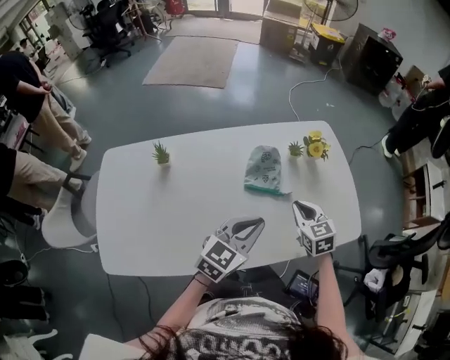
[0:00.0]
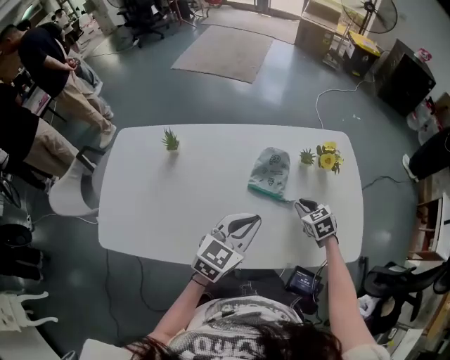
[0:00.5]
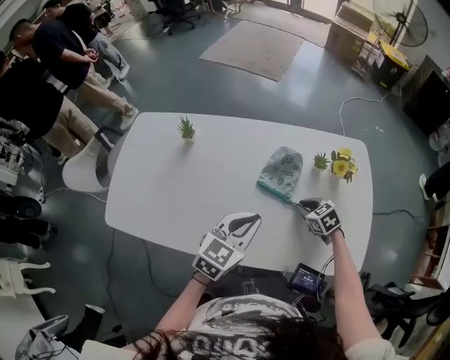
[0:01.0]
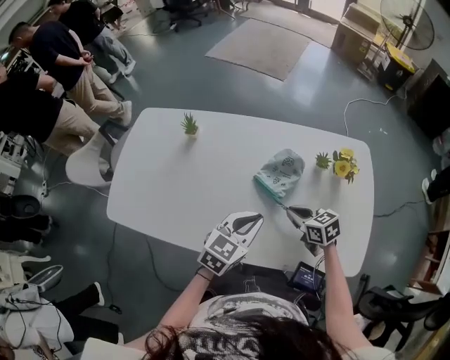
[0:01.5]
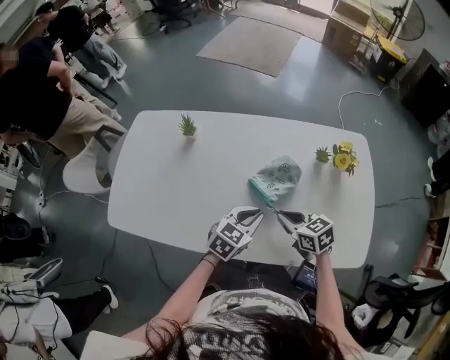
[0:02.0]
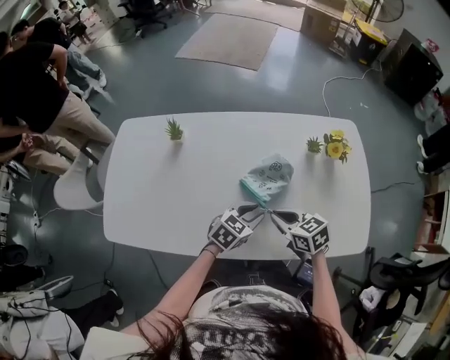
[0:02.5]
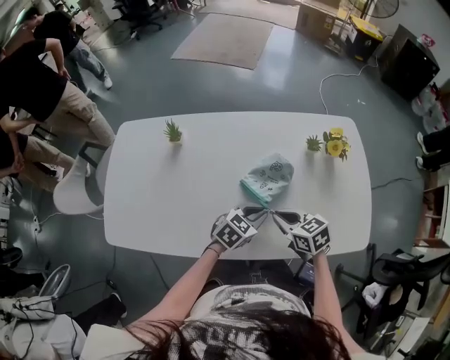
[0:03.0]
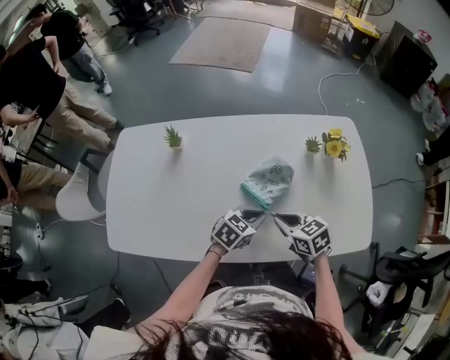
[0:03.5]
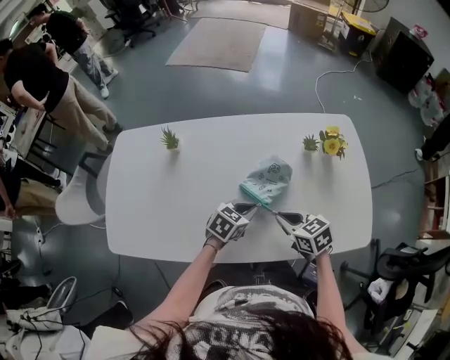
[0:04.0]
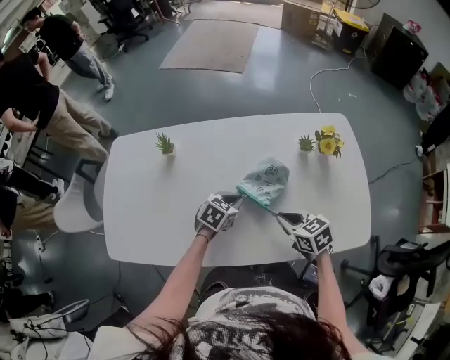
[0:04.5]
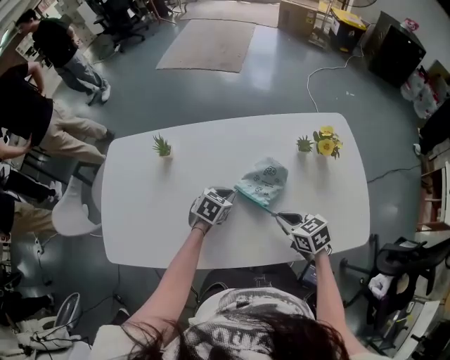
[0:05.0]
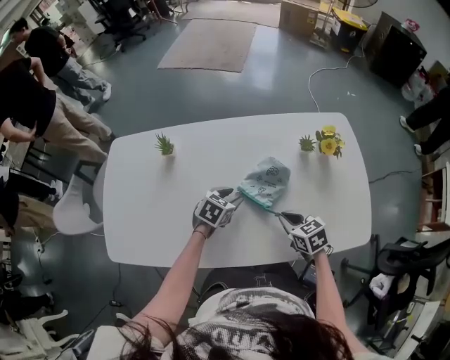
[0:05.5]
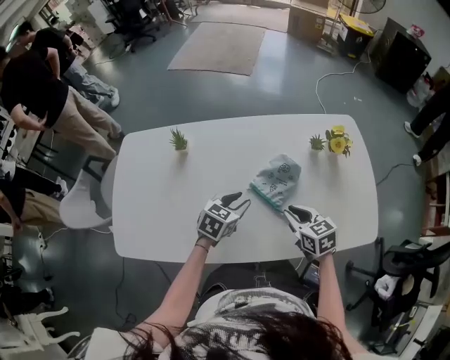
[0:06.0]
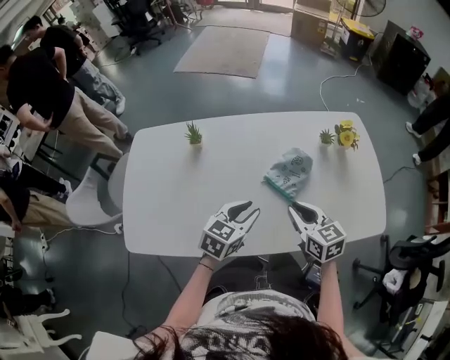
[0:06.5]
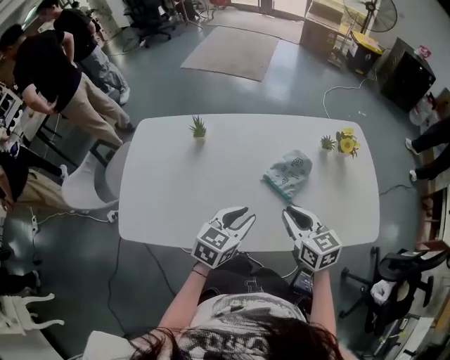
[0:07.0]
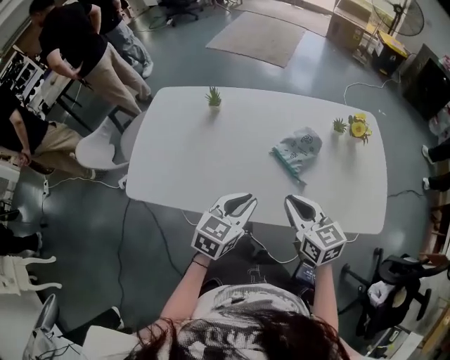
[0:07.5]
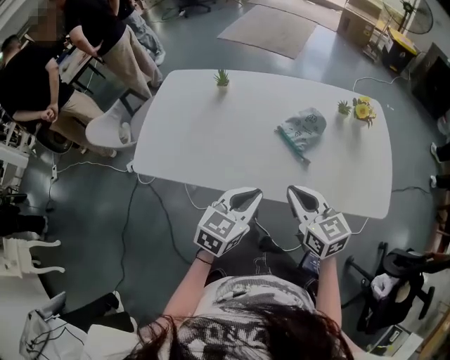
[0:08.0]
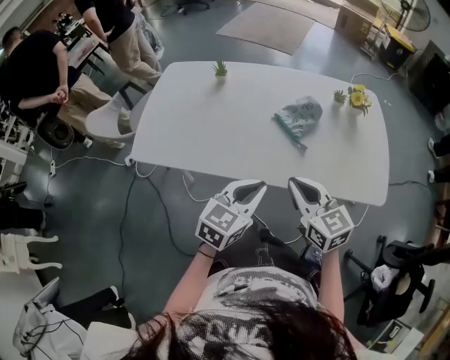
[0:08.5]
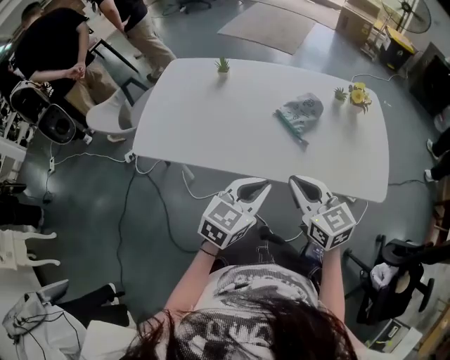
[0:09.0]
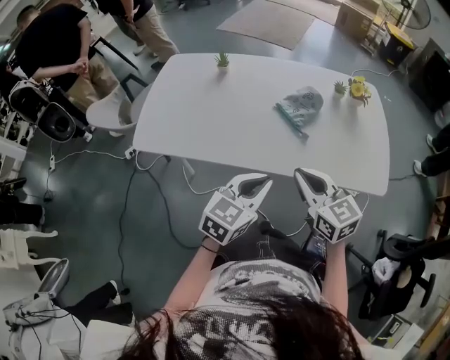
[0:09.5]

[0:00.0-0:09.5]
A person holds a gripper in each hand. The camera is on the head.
0:00.0 to 0:02.0: The right gripper reaches about 10 cm downward, then returns, and swivels some 40 degrees; the left gripper moves downward, about 10 cm, and turns by some 20 degrees.
0:02.0 to 0:04.0: The left gripper travels downward by roughly 5 cm.
0:04.0 to 0:05.5: The left gripper moves to the left and forward, about 10 cm, and opens up.
0:05.5 to 0:07.5: The left gripper heads backward and upward, covering about 25 cm, turns by roughly 30 degrees, and closes up; the right gripper shifts approximately 20 cm upward, backward and to the left, and turns by approximately 30 degrees.
0:07.5 to 0:09.5: The two grippers go approximately 10 cm backward.

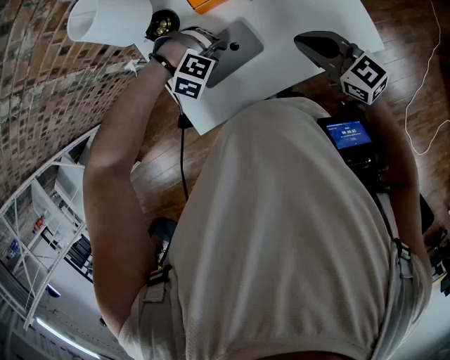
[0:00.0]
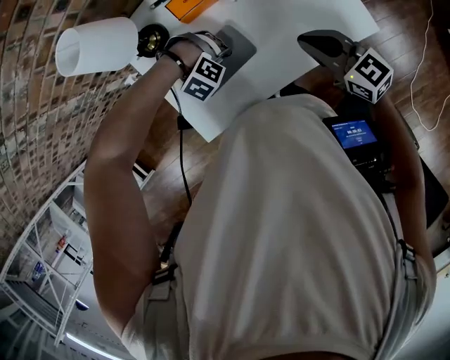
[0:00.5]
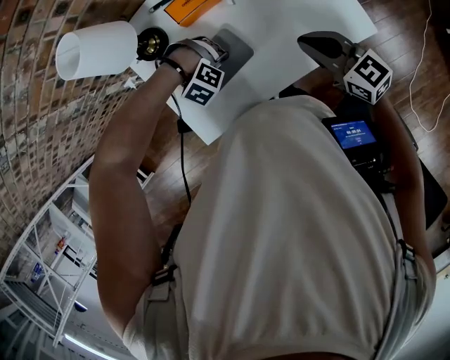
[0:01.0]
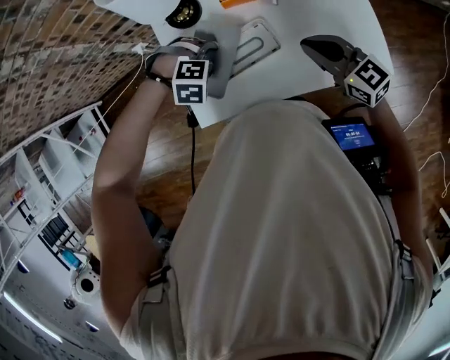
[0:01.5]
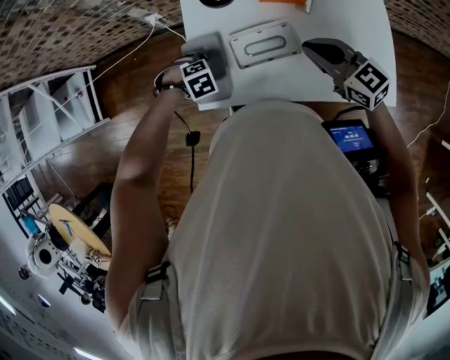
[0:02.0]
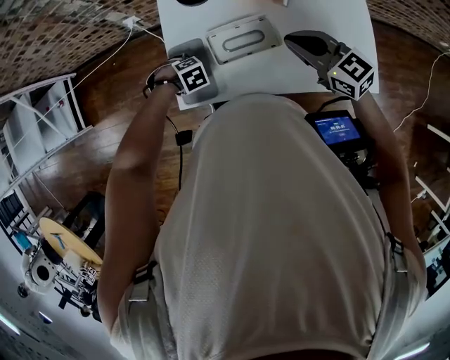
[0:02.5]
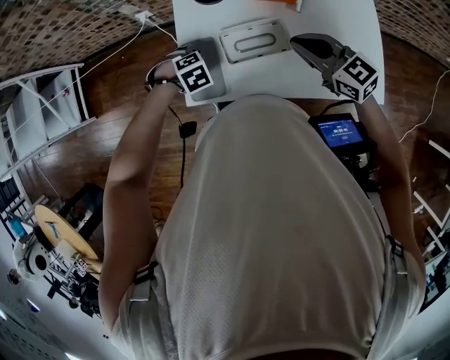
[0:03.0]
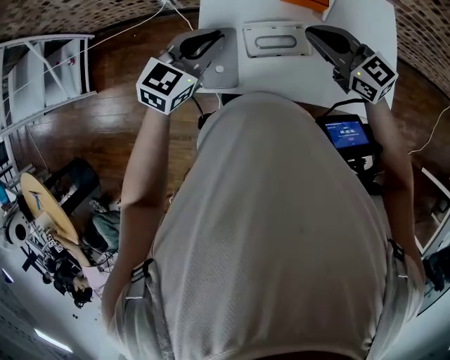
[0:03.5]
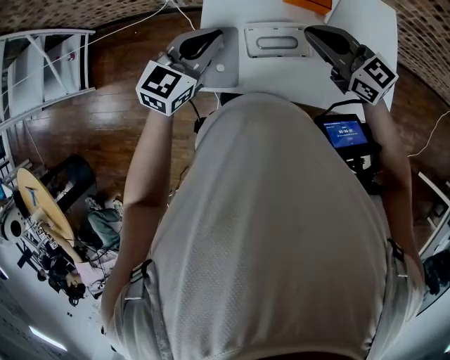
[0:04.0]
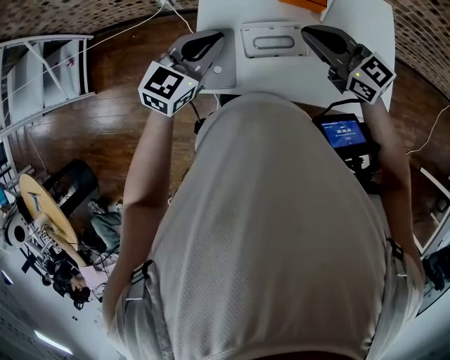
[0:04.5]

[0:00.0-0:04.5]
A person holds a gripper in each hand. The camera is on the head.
0:00.0 to 0:02.0: The right gripper shifts by some 10 cm, and changes its angle by roughly 20 degrees; the left gripper swings up and down, approximately 10 cm each way, with 2 reversals, twists roughly 70 degrees counterclockwise, seen from behind, and opens its fingers.
0:02.0 to 0:04.5: The left gripper shifts some 25 cm upward, angles its fingers upward, by some 70 degrees, and closes its fingers.

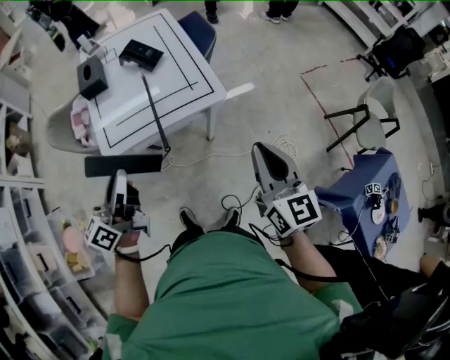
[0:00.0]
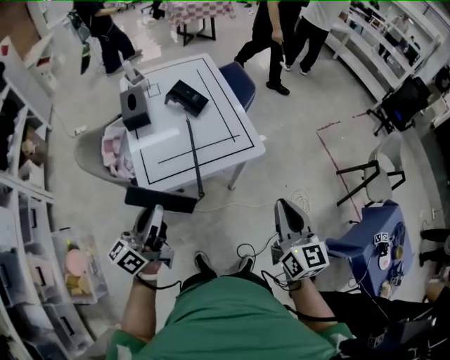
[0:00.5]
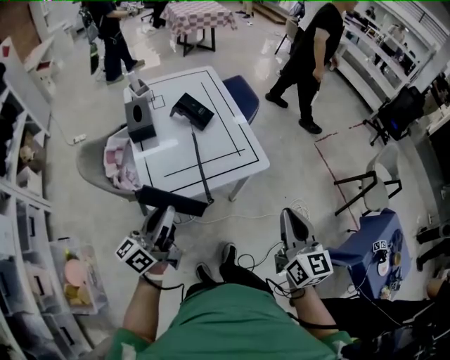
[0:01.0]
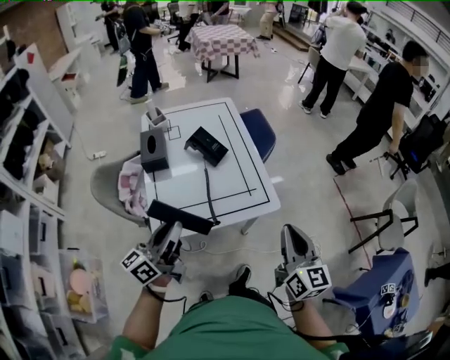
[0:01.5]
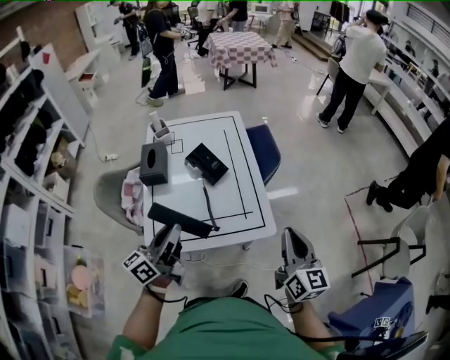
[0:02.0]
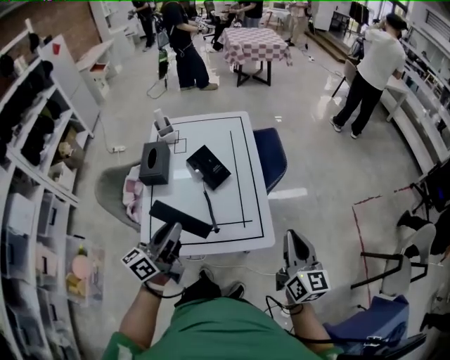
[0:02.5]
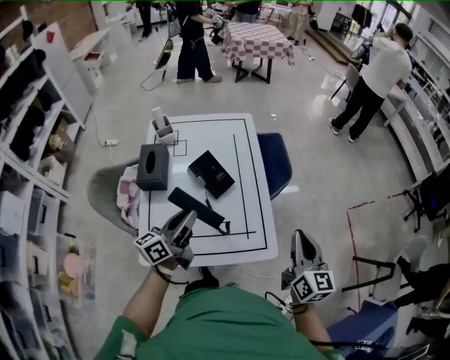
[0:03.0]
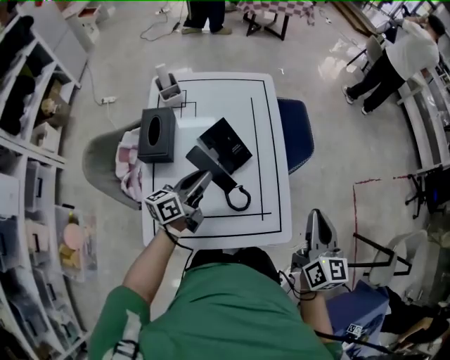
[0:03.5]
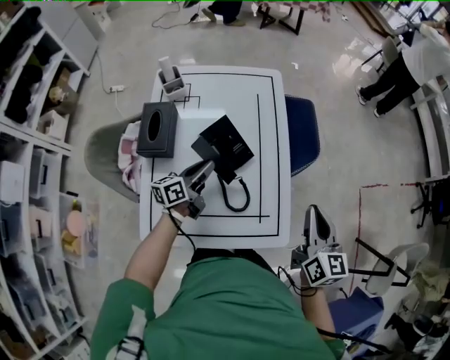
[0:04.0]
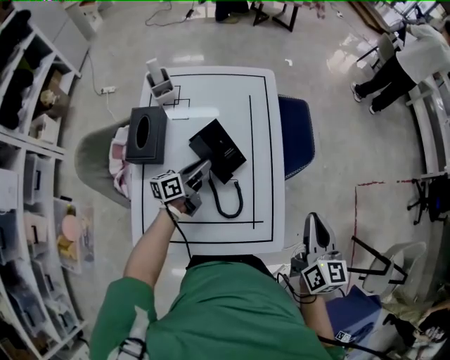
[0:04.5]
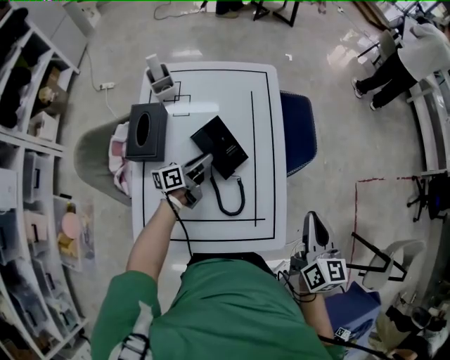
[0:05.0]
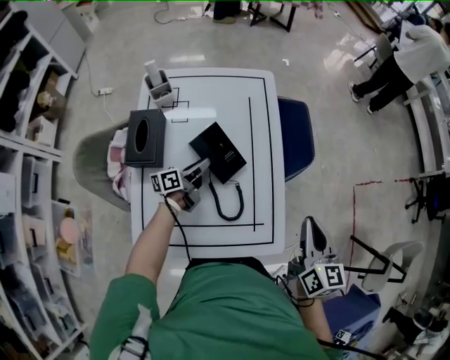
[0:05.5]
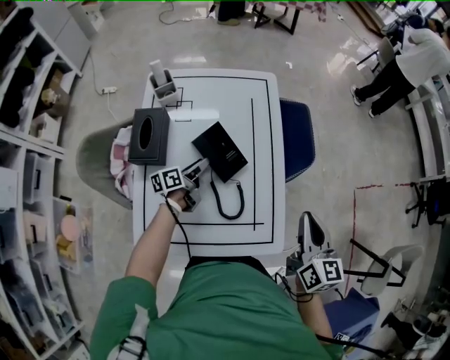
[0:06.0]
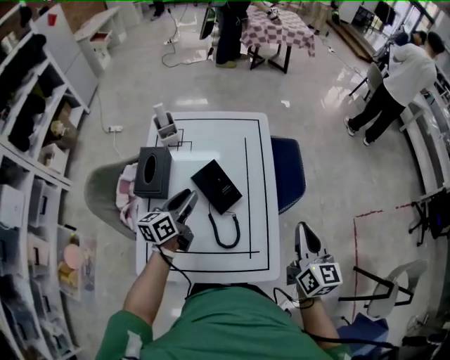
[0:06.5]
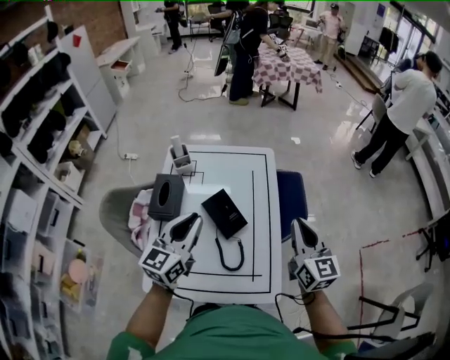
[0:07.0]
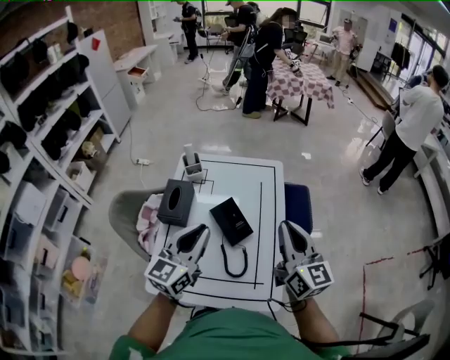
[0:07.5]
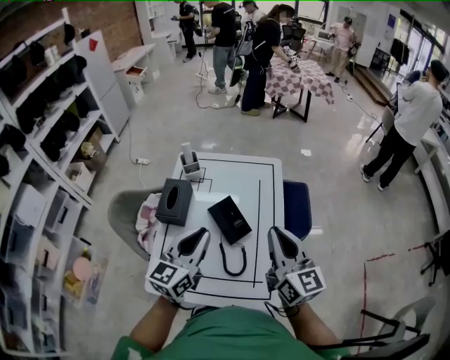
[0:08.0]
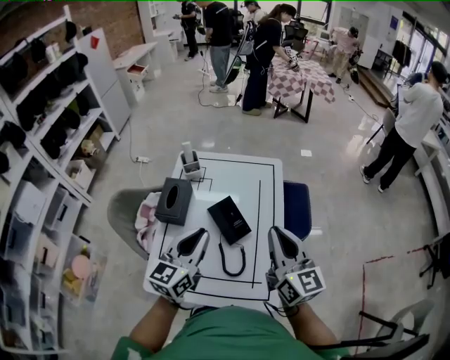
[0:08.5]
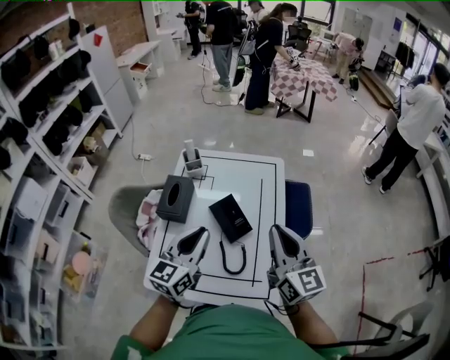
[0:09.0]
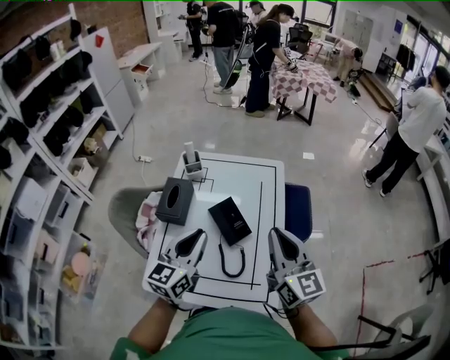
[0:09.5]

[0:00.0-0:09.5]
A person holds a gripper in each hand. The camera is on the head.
0:00.0 to 0:02.0: The grippers both shift forward by about 20 cm.
0:02.0 to 0:04.0: The right gripper travels forward by about 25 cm. Meanwhile the left gripper shifts approximately 35 cm forward and downward, and swivels roughly 20 degrees.
0:04.0 to 0:05.5: The left gripper moves downward and forward, roughly 10 cm.
0:05.5 to 0:07.5: The right gripper travels upward, to the left and forward by some 20 cm, and changes its angle by some 30 degrees; the left gripper is displaced upward by some 35 cm, and rotates around the line of its fingers by approximately 50 degrees, clockwise from behind.
0:07.5 to 0:09.5: There are only small adjustments of the grippers.

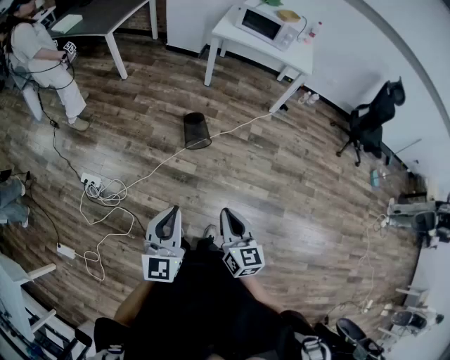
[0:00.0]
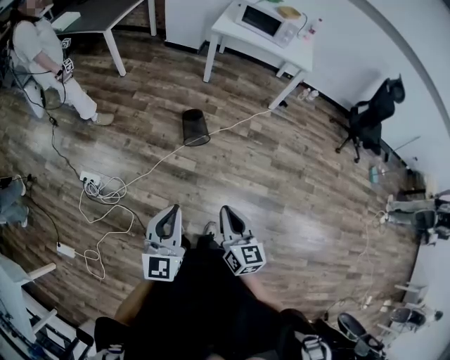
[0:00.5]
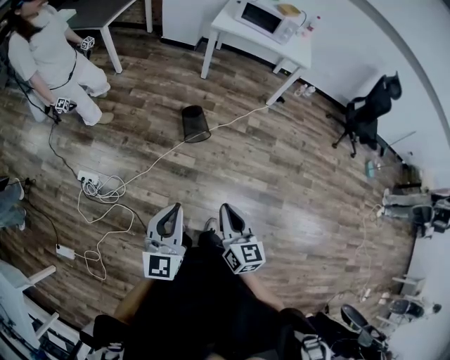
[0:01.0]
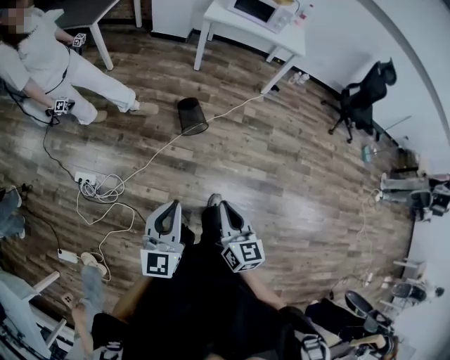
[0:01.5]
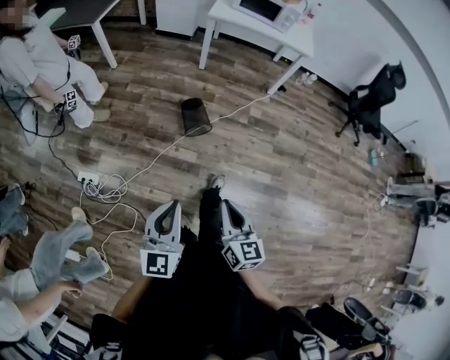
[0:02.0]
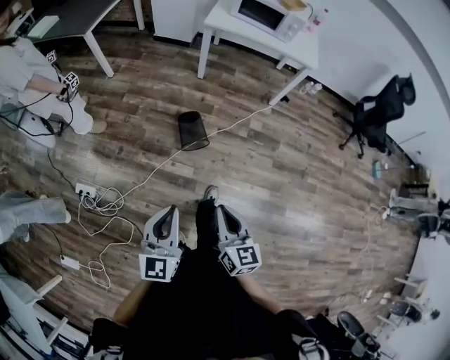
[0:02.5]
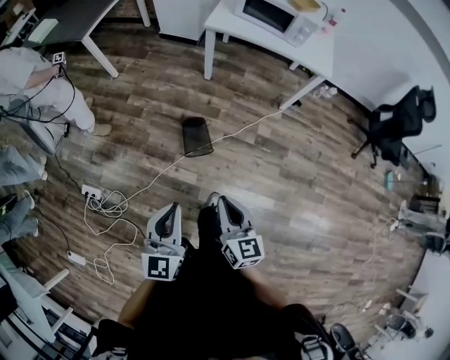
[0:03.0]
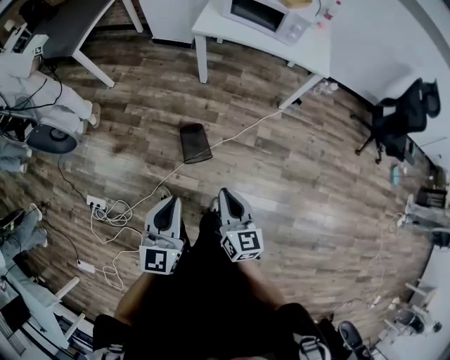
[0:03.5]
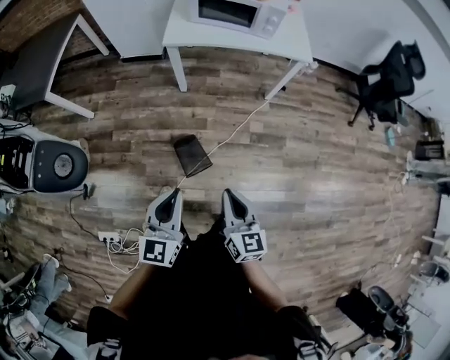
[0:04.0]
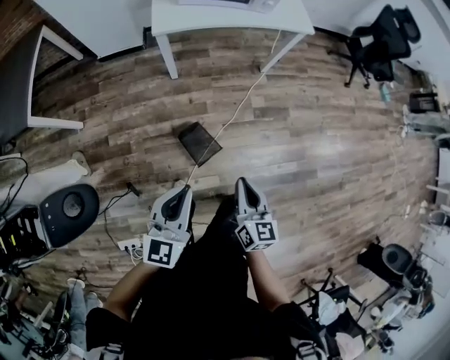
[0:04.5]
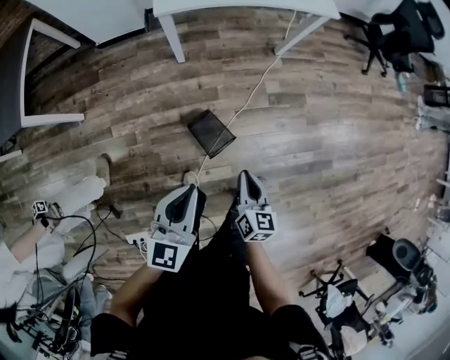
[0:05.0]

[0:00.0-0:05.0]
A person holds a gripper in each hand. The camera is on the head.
0:00.0 to 0:02.5: The two grippers go about 15 cm forward.
0:02.5 to 0:05.0: The right gripper shifts by some 40 cm, and swivels about 40 degrees. Meanwhile the left gripper ends up approximately 50 cm from where it was, and changes its angle by approximately 40 degrees.
